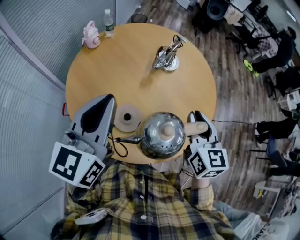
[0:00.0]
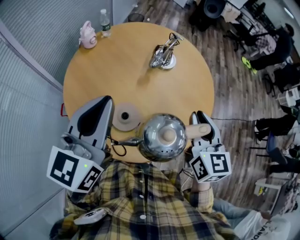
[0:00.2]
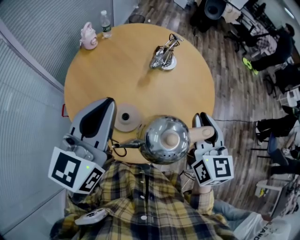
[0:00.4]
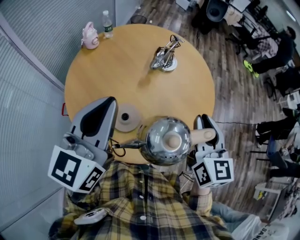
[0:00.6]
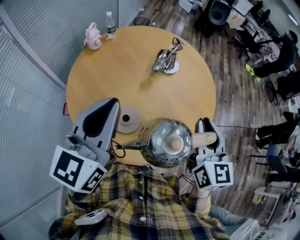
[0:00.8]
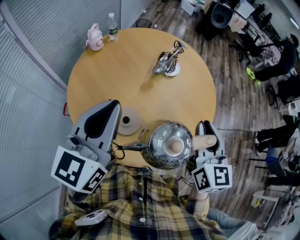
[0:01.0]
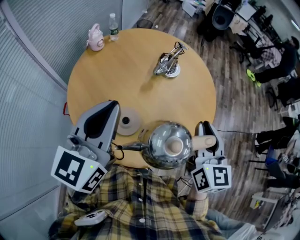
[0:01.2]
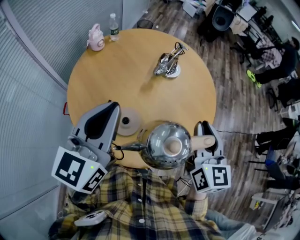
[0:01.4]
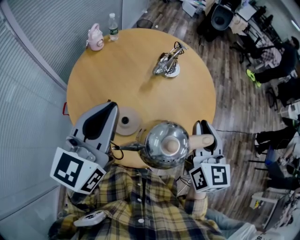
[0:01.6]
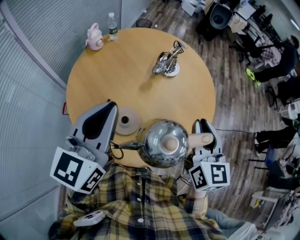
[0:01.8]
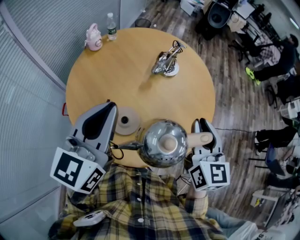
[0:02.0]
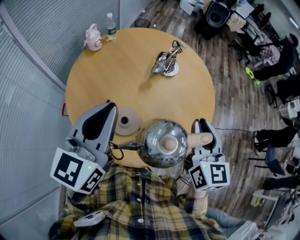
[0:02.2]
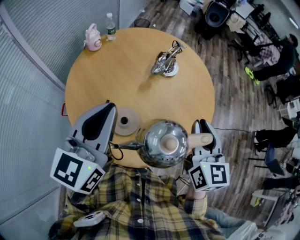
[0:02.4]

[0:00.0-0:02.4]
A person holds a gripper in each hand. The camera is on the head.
0:00.0 to 0:01.2: There are only small adjustments of the grippers.
0:01.2 to 0:02.4: Both grippers stay put.

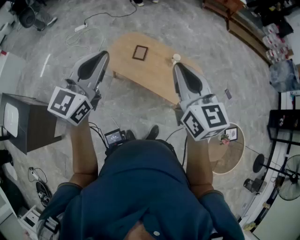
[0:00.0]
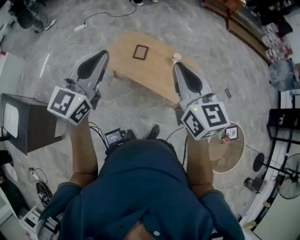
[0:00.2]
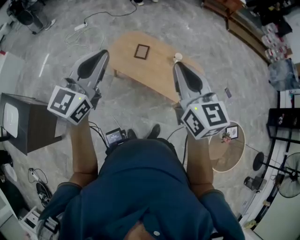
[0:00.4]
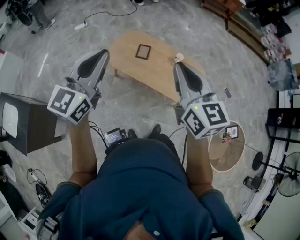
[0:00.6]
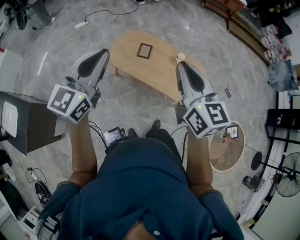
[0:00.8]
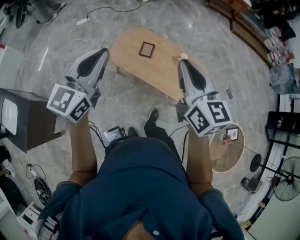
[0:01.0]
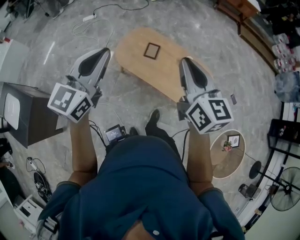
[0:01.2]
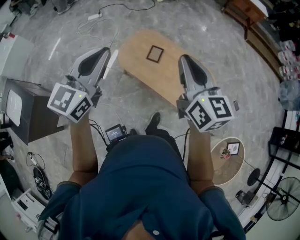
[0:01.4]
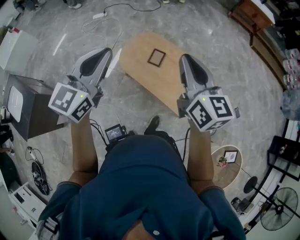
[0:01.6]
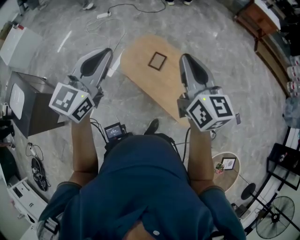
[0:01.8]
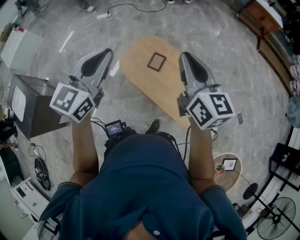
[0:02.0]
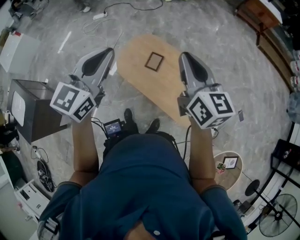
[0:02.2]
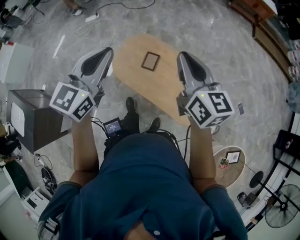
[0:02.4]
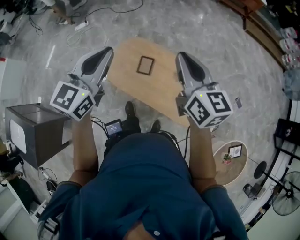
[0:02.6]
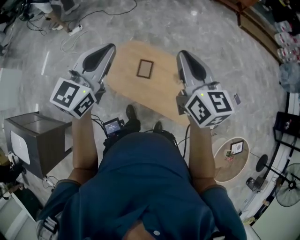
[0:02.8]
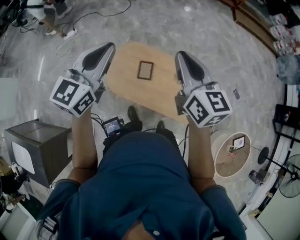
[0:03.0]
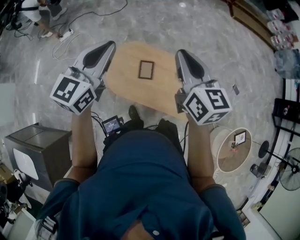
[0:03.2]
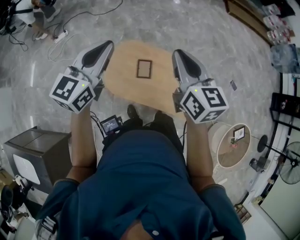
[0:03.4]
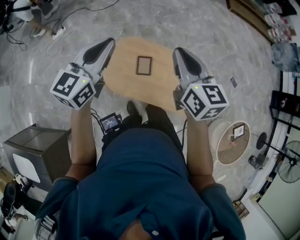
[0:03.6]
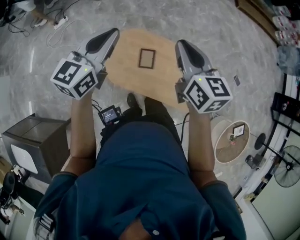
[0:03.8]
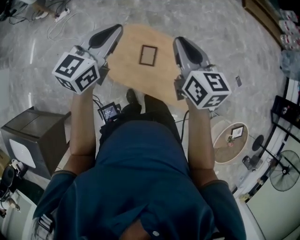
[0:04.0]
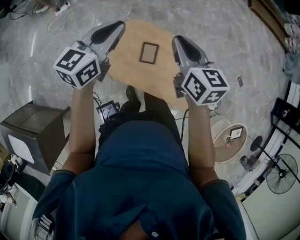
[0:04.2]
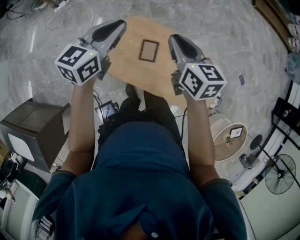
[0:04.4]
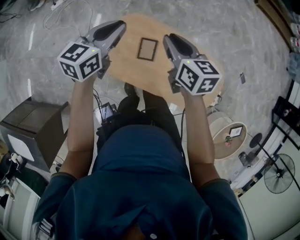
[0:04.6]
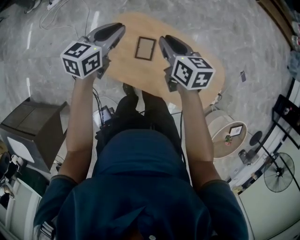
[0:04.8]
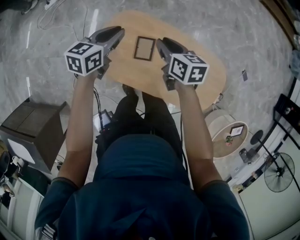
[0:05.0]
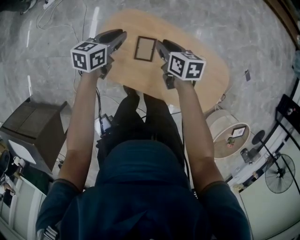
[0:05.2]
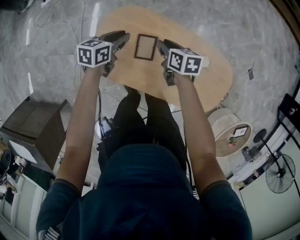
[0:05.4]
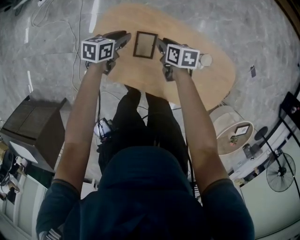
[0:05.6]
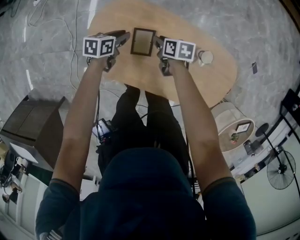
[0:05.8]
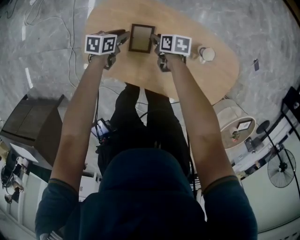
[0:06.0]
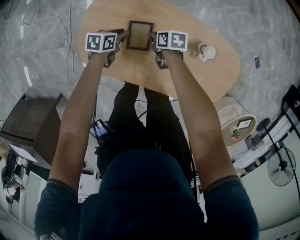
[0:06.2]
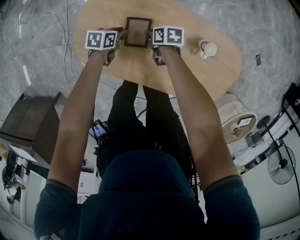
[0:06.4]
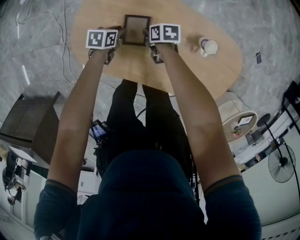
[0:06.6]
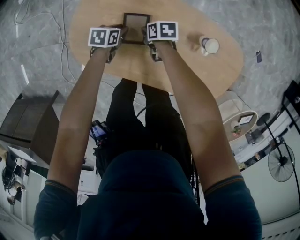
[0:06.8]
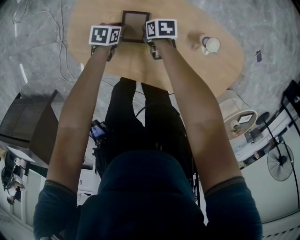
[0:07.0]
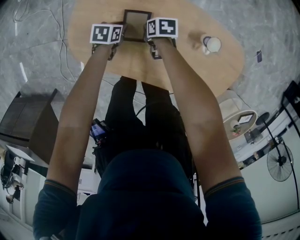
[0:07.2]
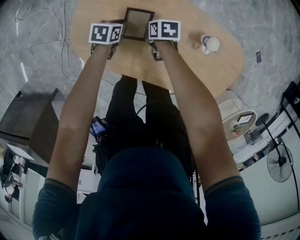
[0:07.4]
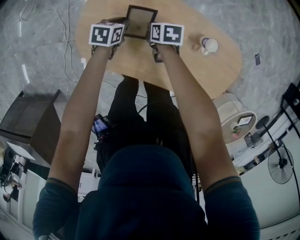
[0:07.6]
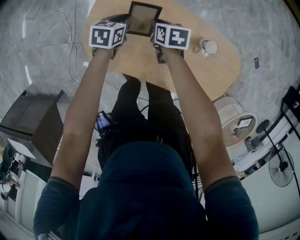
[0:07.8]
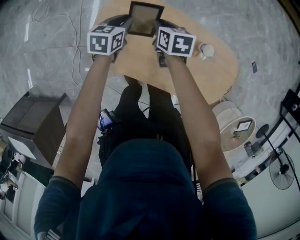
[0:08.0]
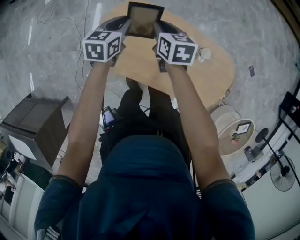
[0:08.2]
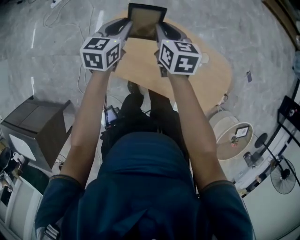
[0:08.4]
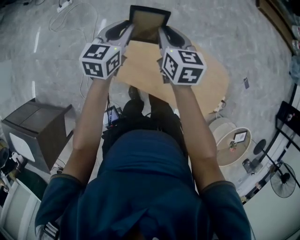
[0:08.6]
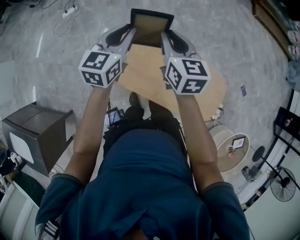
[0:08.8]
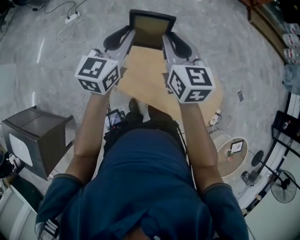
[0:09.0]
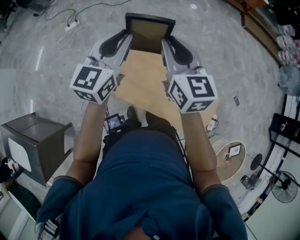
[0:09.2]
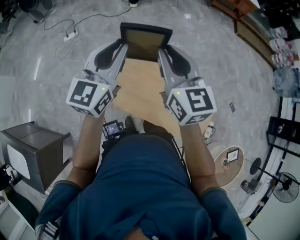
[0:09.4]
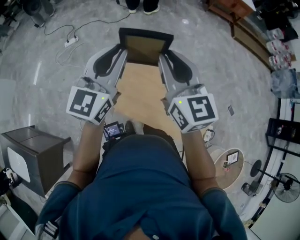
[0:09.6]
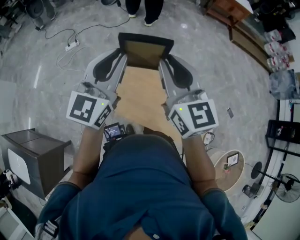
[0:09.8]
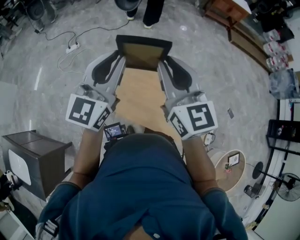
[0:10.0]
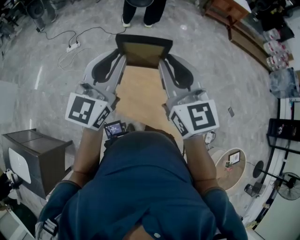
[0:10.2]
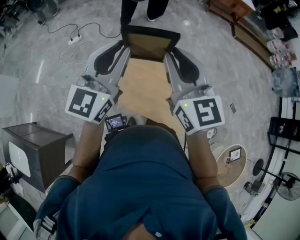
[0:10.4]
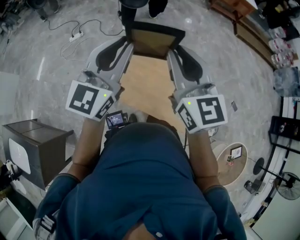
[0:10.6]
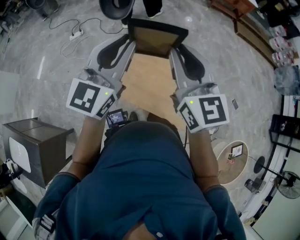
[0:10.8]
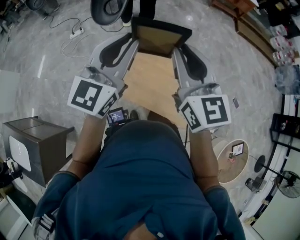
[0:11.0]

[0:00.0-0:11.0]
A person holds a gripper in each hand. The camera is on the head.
0:00.0 to 0:01.6: Both grippers move forward, roughly 15 cm.
0:01.6 to 0:03.2: Both grippers travel together forward, roughly 25 cm. The left gripper turns by about 20 degrees.
0:03.2 to 0:04.8: The grippers both shift downward and forward by roughly 30 cm. The right gripper rotates about 30 degrees. Meanwhile the left gripper turns by about 30 degrees.
0:04.8 to 0:06.2: The two grippers go about 40 cm downward. The left gripper turns by about 40 degrees. Meanwhile the right gripper changes its angle by about 40 degrees.
0:06.2 to 0:07.8: The two grippers go approximately 10 cm upward.
0:07.8 to 0:09.4: Both grippers travel together upward, roughly 60 cm. The right gripper tilts its fingers approximately 50 degrees upward. Meanwhile the left gripper points its fingers about 50 degrees further upward.
0:09.4 to 0:11.0: The grippers both shift backward and upward by approximately 15 cm.

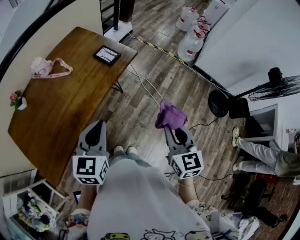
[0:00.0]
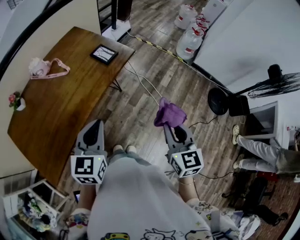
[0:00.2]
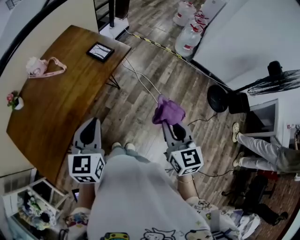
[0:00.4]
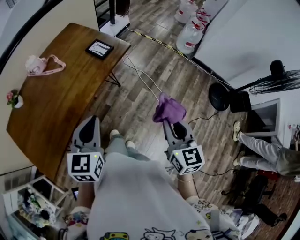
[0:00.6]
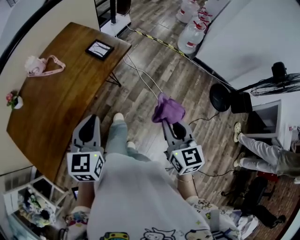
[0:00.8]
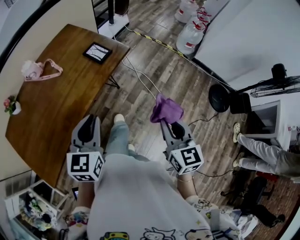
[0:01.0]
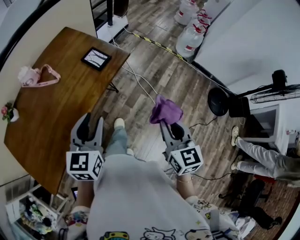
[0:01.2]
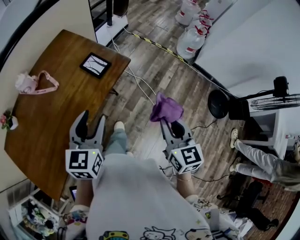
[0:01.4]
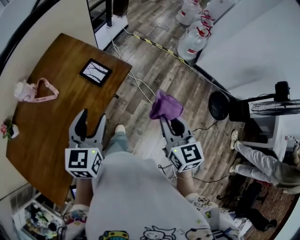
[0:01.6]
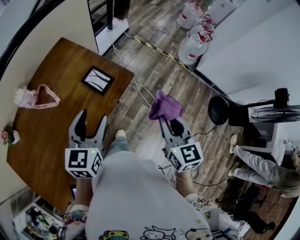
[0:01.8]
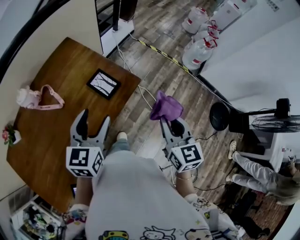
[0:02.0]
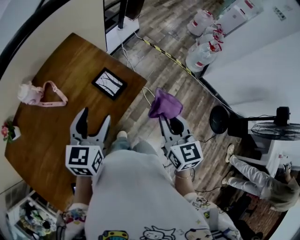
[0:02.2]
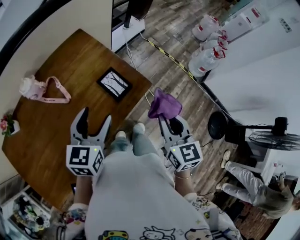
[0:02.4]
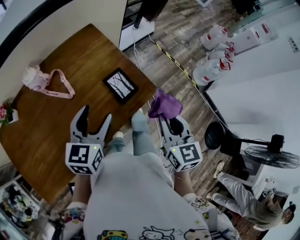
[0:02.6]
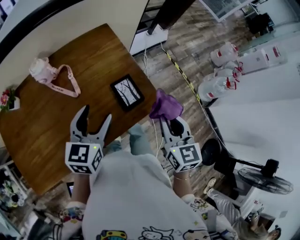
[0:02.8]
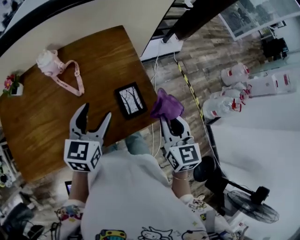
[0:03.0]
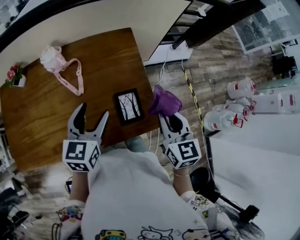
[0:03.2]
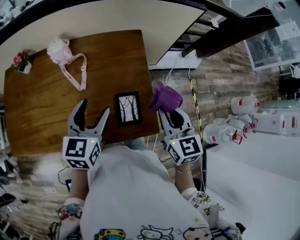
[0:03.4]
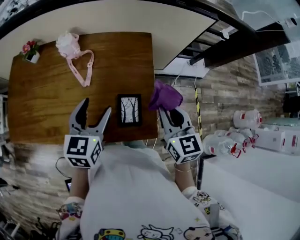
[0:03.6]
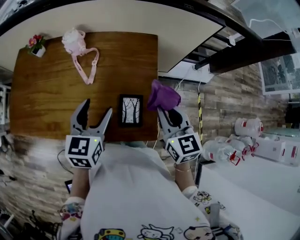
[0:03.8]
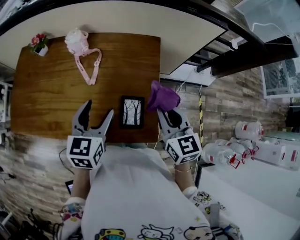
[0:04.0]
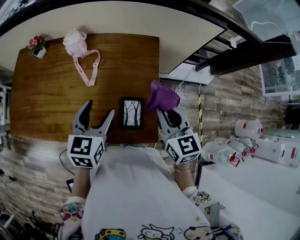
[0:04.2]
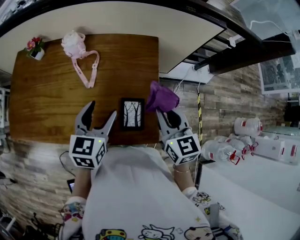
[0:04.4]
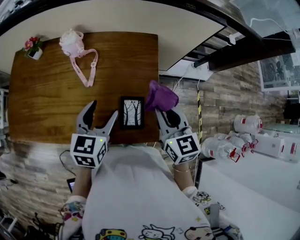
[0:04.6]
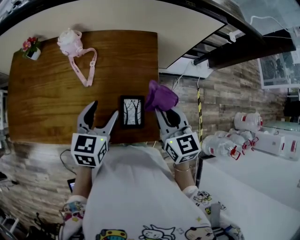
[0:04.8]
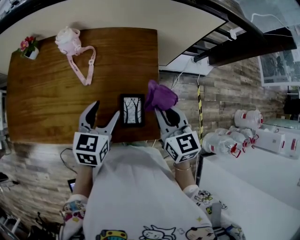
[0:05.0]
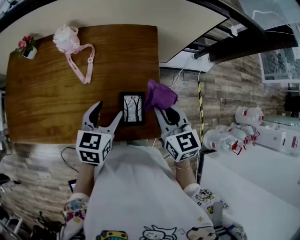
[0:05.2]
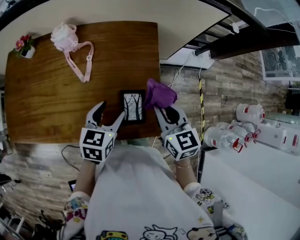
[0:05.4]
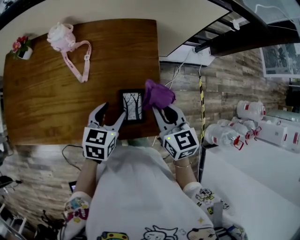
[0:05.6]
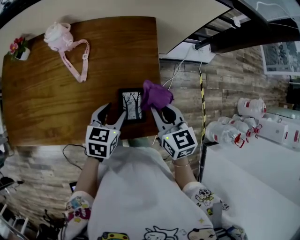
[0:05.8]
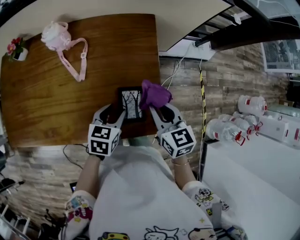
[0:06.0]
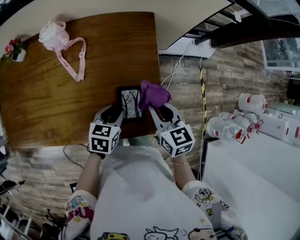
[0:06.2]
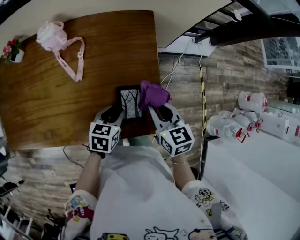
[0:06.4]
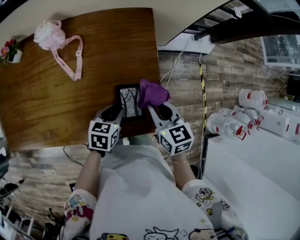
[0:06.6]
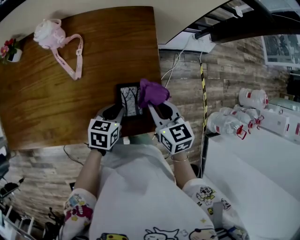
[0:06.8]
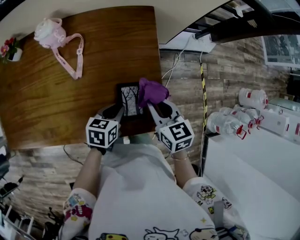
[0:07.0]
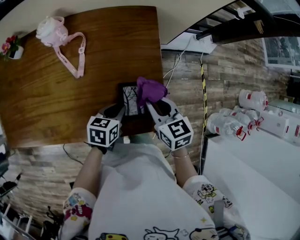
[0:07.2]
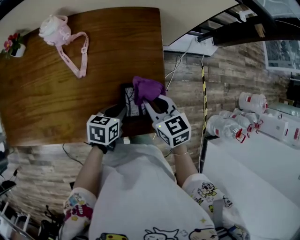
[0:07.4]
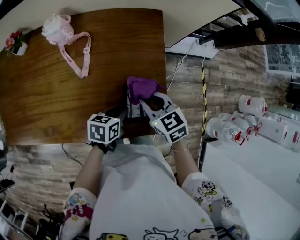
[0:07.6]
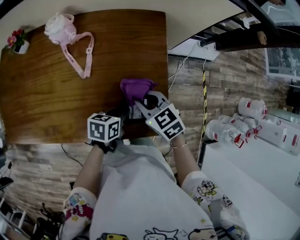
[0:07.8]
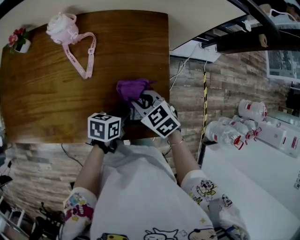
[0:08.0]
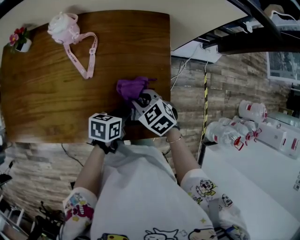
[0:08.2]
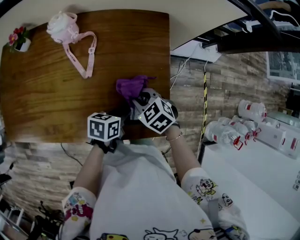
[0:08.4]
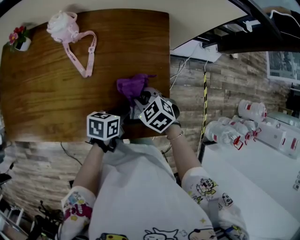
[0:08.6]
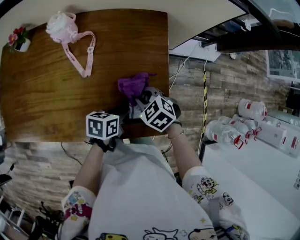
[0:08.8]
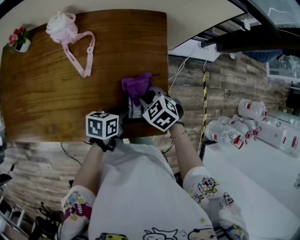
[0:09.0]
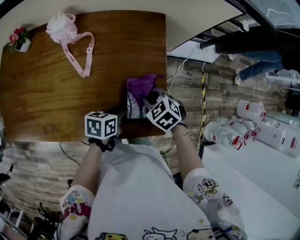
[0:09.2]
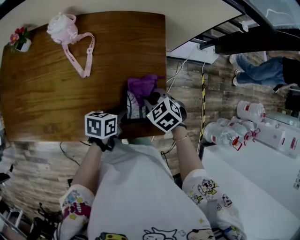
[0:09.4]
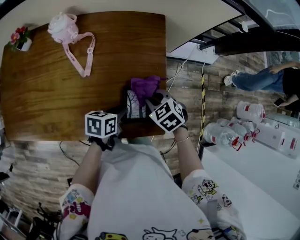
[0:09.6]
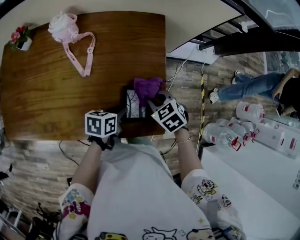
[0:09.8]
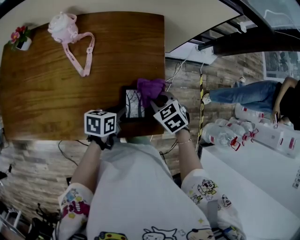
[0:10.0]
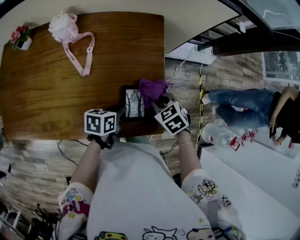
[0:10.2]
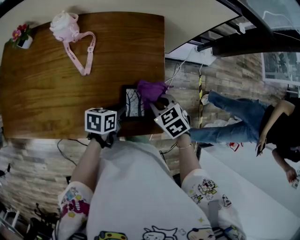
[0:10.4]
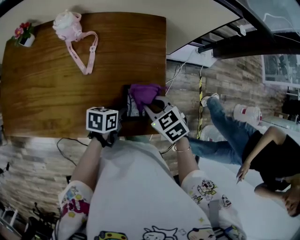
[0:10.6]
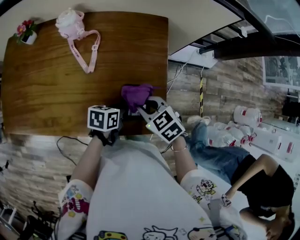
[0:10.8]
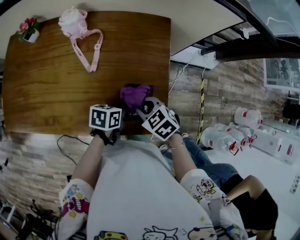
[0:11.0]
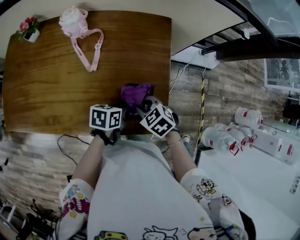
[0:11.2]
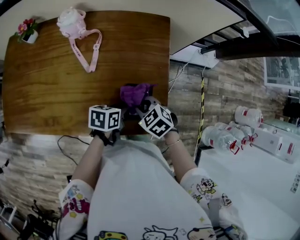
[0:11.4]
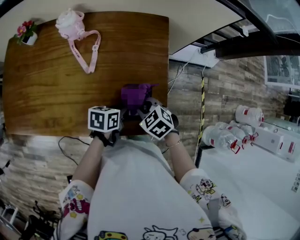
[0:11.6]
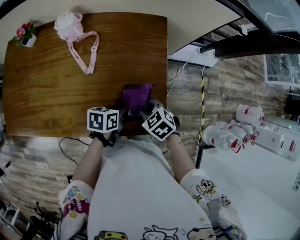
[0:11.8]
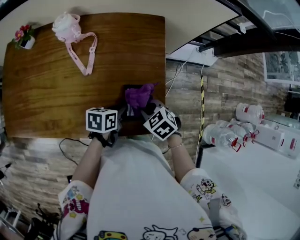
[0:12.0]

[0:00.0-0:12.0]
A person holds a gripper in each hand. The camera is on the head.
0:00.0 to 0:01.6: The two grippers go roughly 20 cm forward. The left gripper opens.
0:01.6 to 0:03.0: The left gripper changes place by roughly 20 cm, and swivels approximately 30 degrees, while the right gripper ends up some 30 cm from where it was, and turns by approximately 30 degrees.
0:03.0 to 0:04.4: The left gripper swivels about 20 degrees; the right gripper ends up about 15 cm from where it was, and swivels roughly 30 degrees.
0:04.4 to 0:06.0: The left gripper shifts some 15 cm downward, and rotates roughly 20 degrees, while the right gripper travels downward by approximately 10 cm.
0:06.0 to 0:07.6: The right gripper moves to the left and downward, some 10 cm; the left gripper changes its angle by some 20 degrees, and closes up.
0:07.6 to 0:09.0: The right gripper goes approximately 5 cm downward, and changes its angle by roughly 30 degrees.
0:09.0 to 0:10.4: The right gripper moves to the right, about 5 cm.
0:10.4 to 0:12.0: The right gripper changes place by approximately 5 cm.
